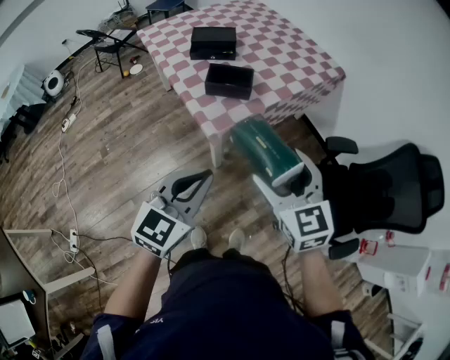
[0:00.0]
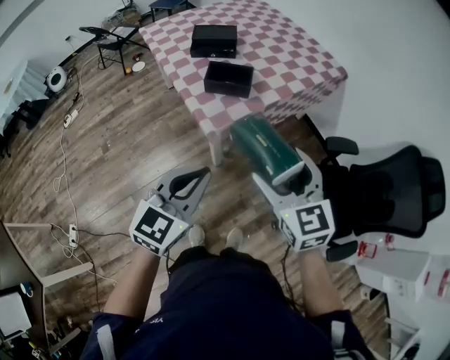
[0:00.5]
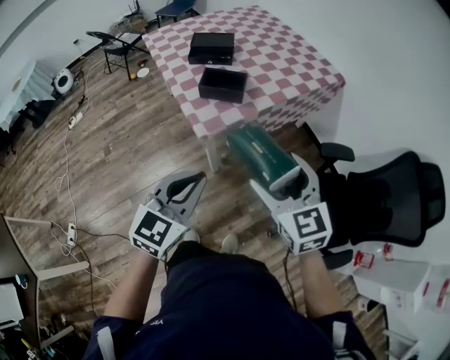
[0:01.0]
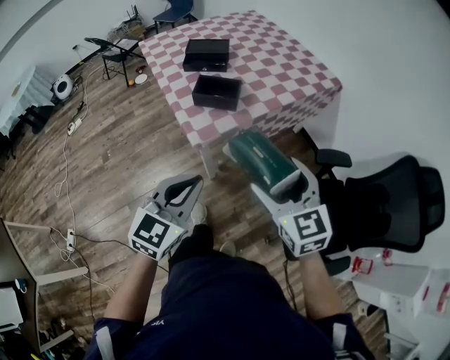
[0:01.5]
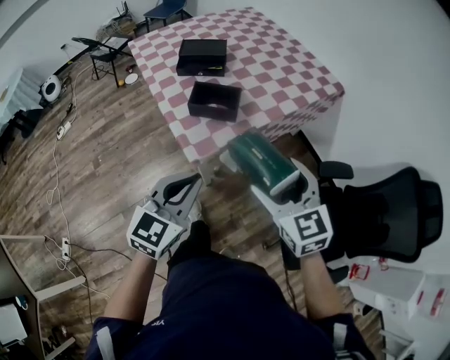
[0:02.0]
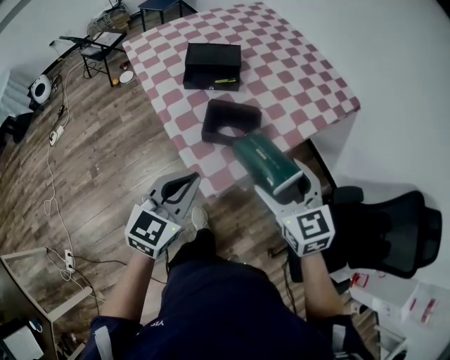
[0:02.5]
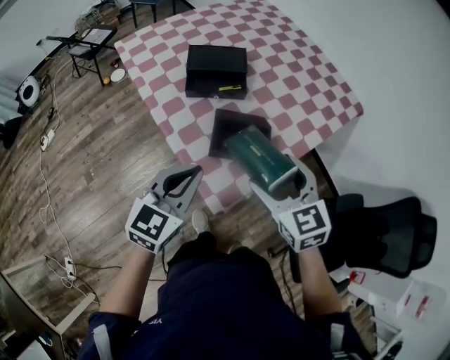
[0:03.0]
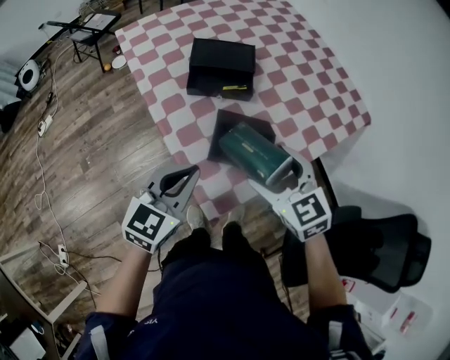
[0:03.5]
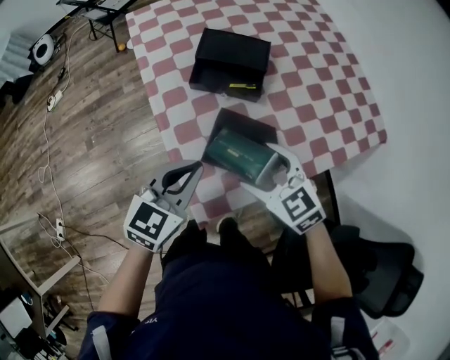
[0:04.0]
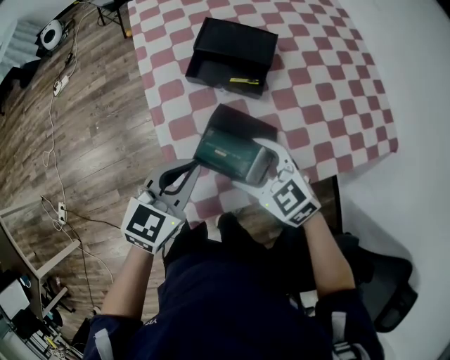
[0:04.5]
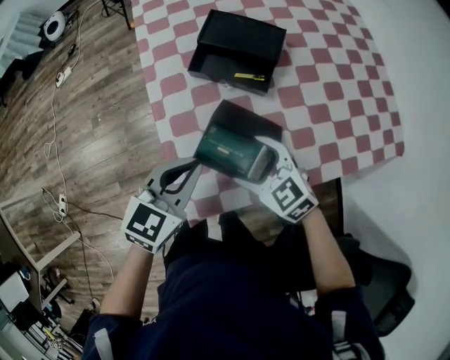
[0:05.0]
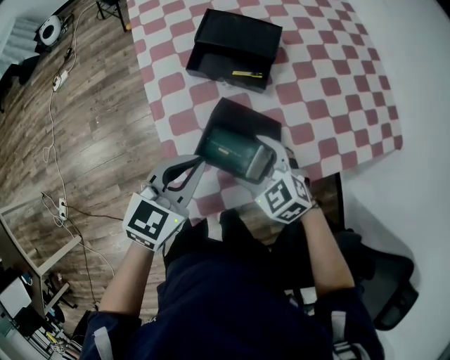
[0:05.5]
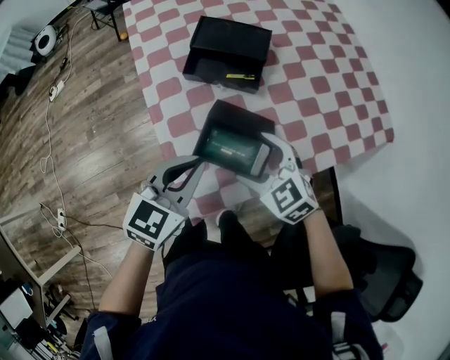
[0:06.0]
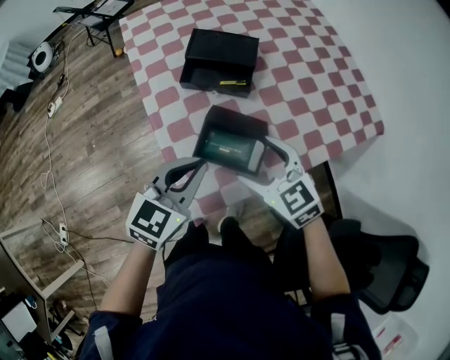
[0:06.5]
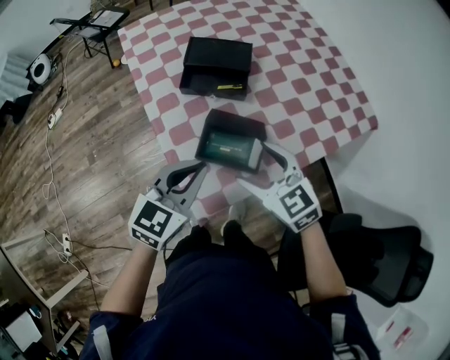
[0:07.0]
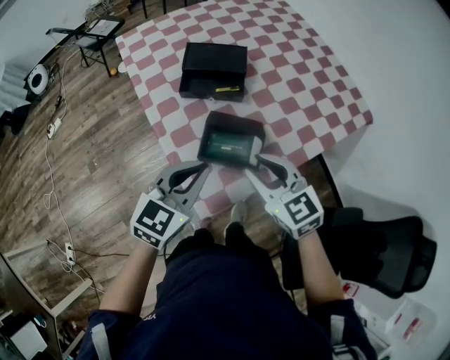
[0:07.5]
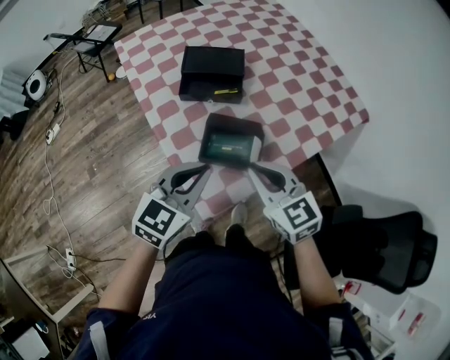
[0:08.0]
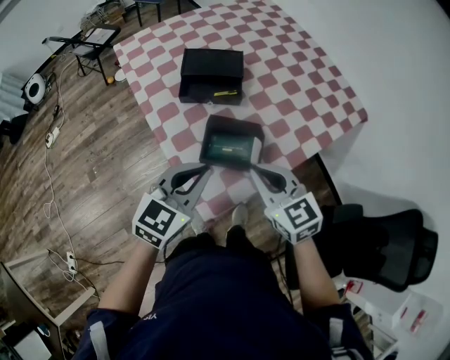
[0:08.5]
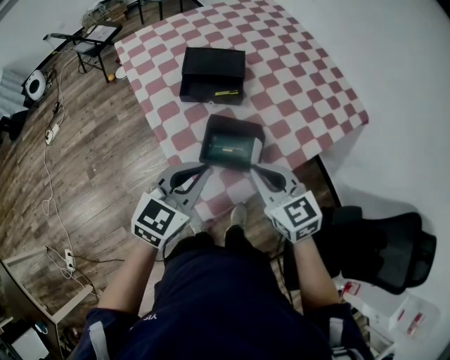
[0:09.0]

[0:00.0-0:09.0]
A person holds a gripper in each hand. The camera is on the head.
0:00.0 to 0:02.0: The left gripper shifts roughly 10 cm forward. Meanwhile the right gripper heads forward and to the right, covering about 10 cm.
0:02.0 to 0:04.5: The left gripper shifts by some 35 cm, and changes its angle by roughly 20 degrees, while the right gripper moves approximately 40 cm, and changes its angle by about 40 degrees.
0:04.5 to 0:07.0: The left gripper moves approximately 5 cm; the right gripper travels upward by approximately 5 cm.
0:07.0 to 0:09.0: The right gripper closes up.

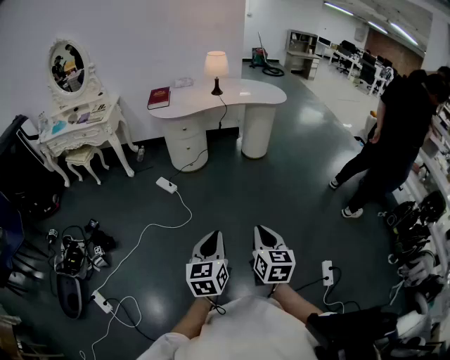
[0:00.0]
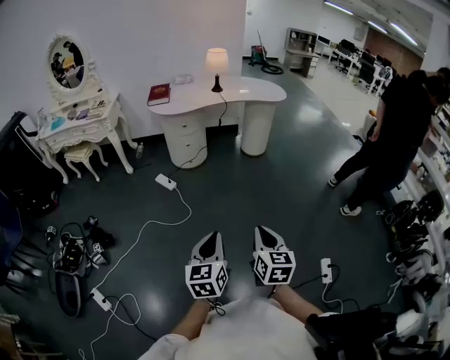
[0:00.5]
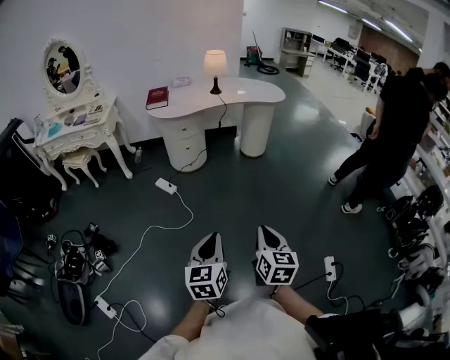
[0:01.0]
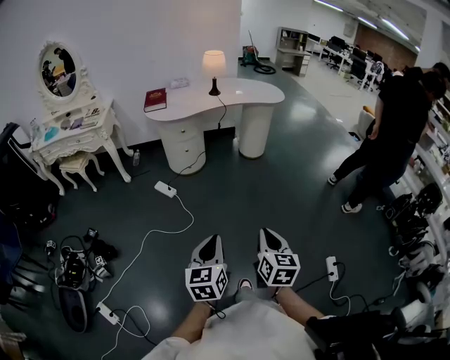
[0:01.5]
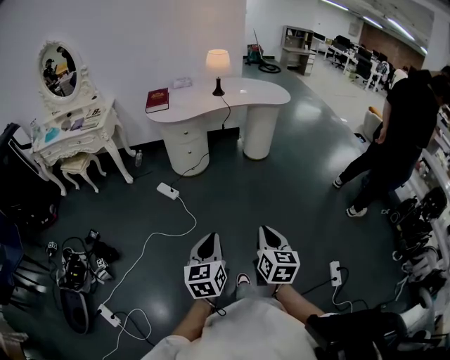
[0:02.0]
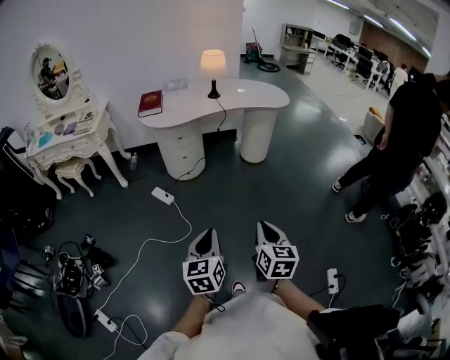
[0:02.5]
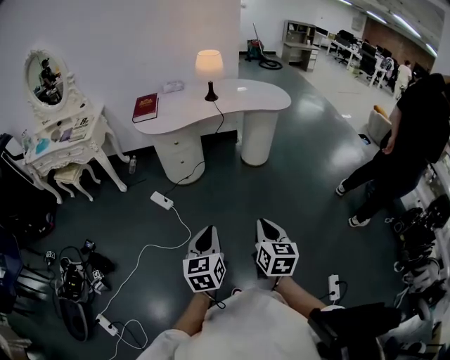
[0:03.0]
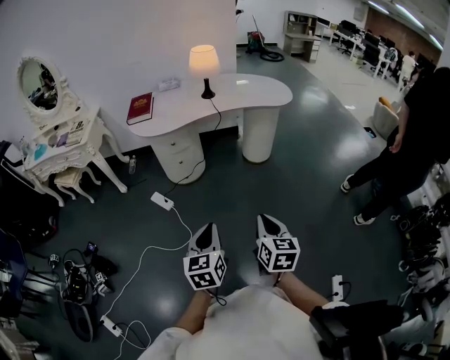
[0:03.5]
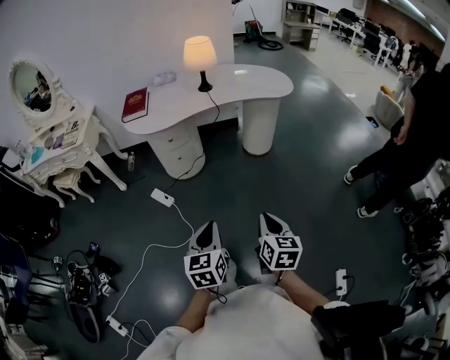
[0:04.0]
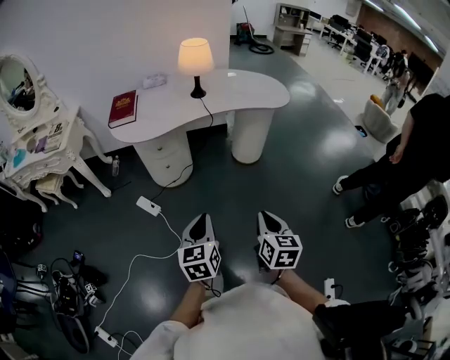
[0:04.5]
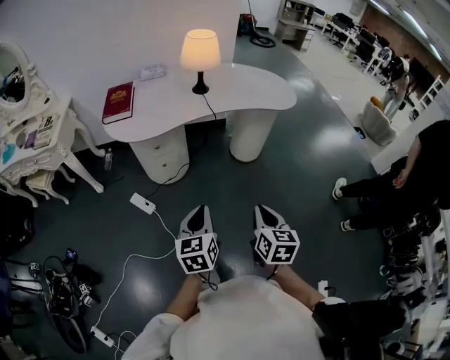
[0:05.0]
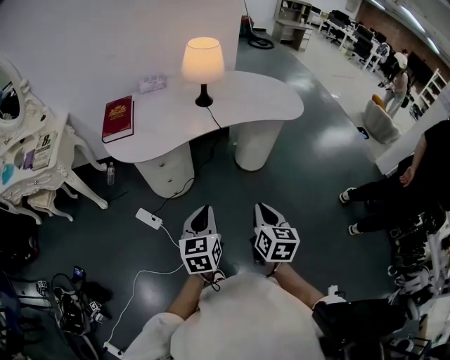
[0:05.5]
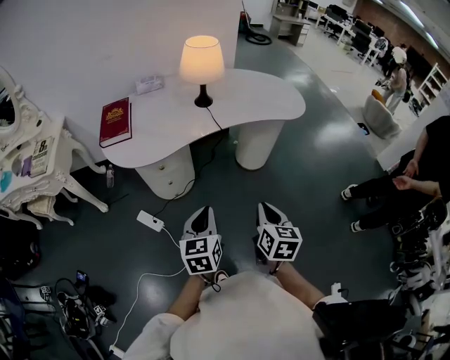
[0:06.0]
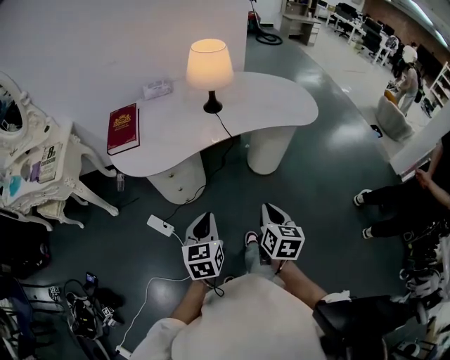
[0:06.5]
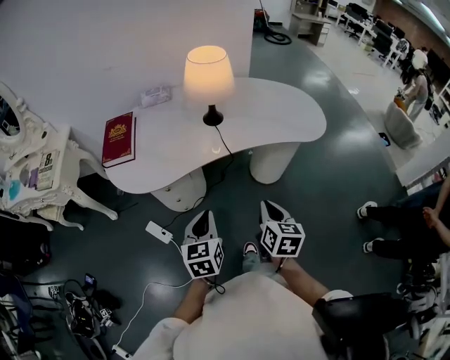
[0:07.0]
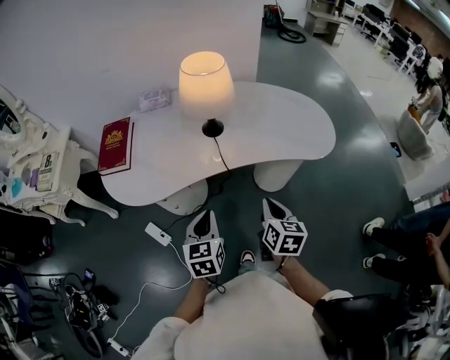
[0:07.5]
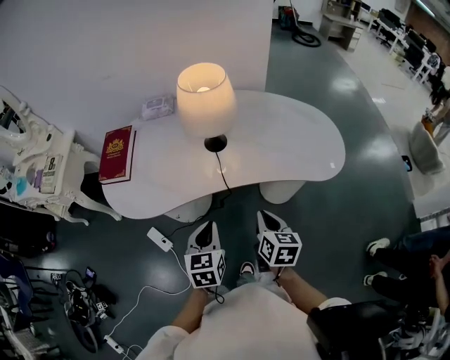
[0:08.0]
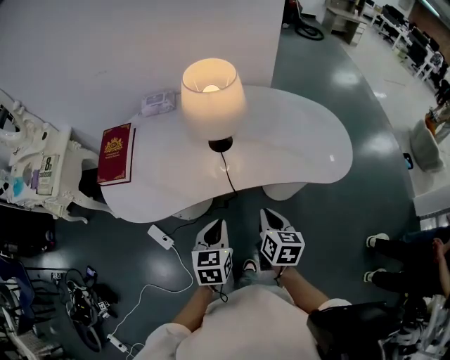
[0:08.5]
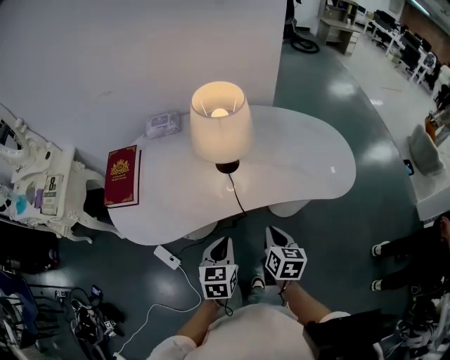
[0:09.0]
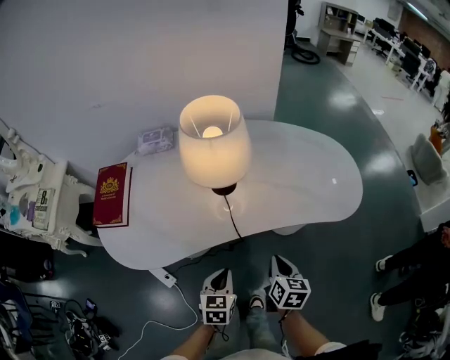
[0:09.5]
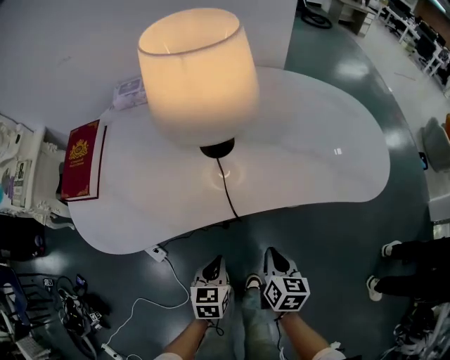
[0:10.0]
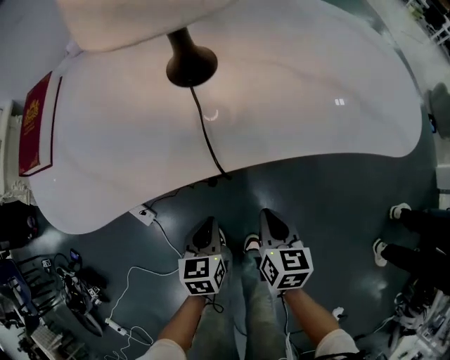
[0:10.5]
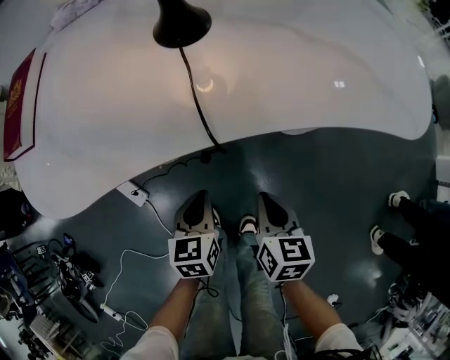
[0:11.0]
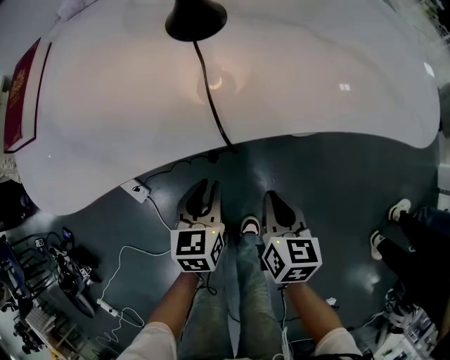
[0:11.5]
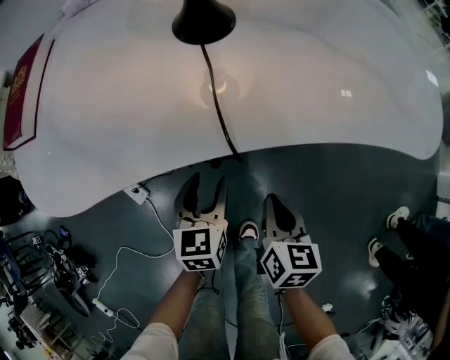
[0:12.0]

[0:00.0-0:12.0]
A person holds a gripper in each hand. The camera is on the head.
0:00.0 to 0:02.0: The right gripper moves forward and to the left, approximately 10 cm. Meanwhile the left gripper moves to the left and forward, some 10 cm.
0:02.0 to 0:04.0: Both grippers travel together forward, some 25 cm.
0:04.0 to 0:06.0: Both grippers move forward, about 30 cm.
0:06.0 to 0:08.0: The two grippers go approximately 30 cm forward.
0:08.0 to 0:10.0: Both grippers move downward, some 20 cm.
0:10.0 to 0:12.0: The left gripper goes some 10 cm downward and forward, and opens up; the right gripper travels downward by roughly 10 cm.

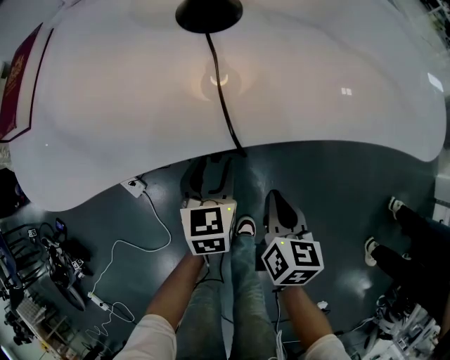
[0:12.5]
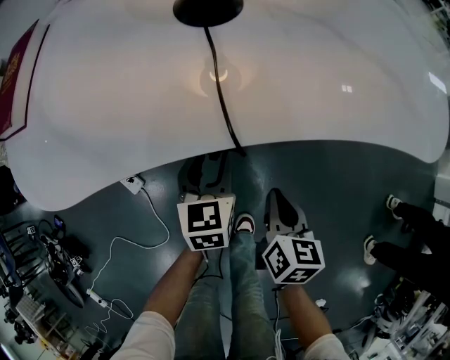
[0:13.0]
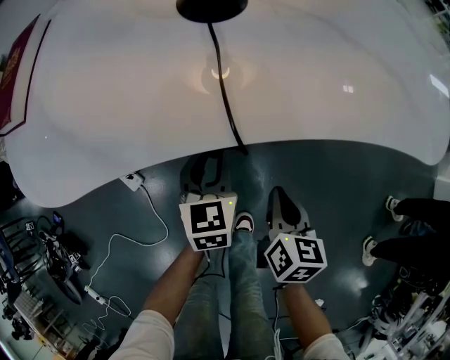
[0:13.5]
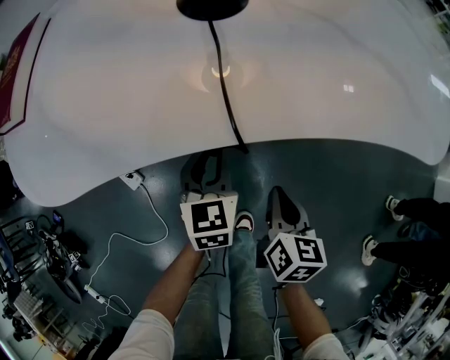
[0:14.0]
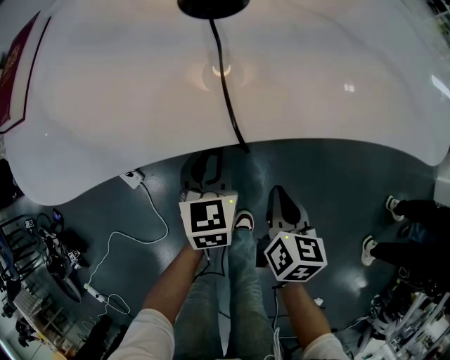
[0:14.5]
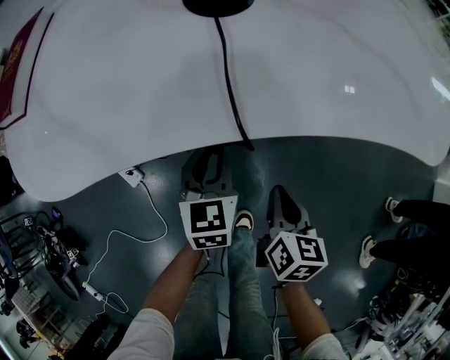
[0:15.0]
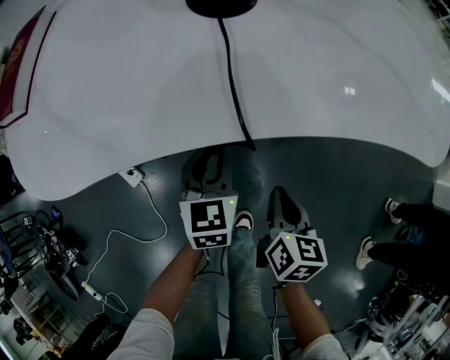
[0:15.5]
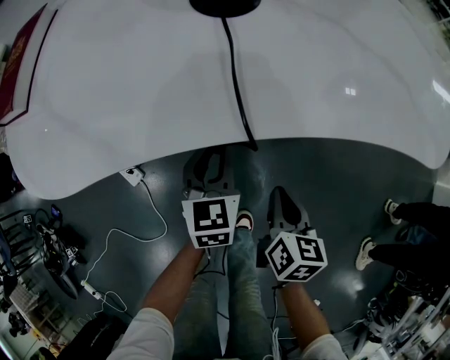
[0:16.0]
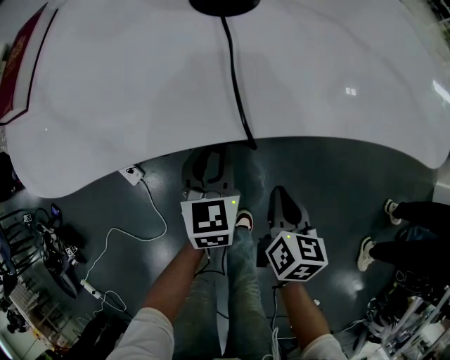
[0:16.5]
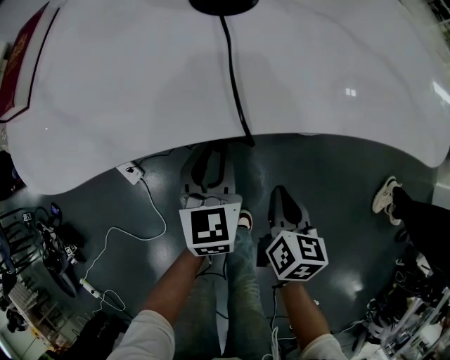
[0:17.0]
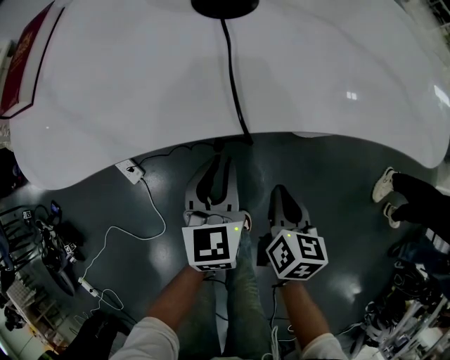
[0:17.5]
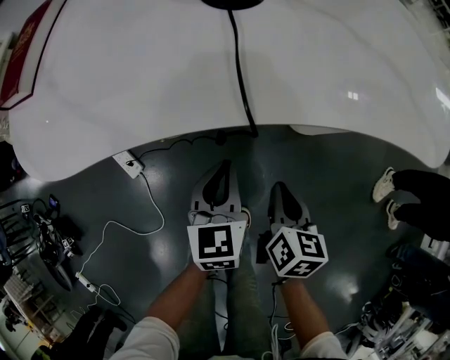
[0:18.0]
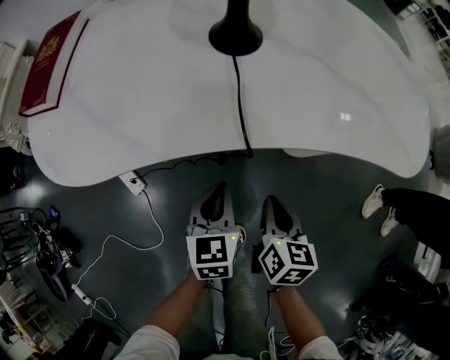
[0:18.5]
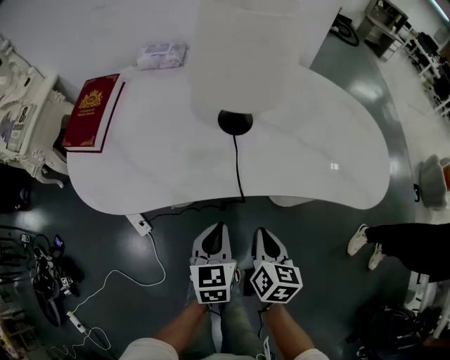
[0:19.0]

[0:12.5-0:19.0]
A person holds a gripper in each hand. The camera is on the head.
0:12.5 to 0:14.5: The left gripper closes.
0:14.5 to 0:17.0: The grippers move only a little.
0:17.0 to 0:19.0: The right gripper travels upward by some 15 cm. Meanwhile the left gripper shifts some 15 cm upward and backward.
